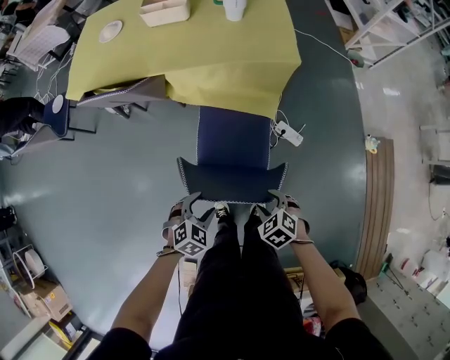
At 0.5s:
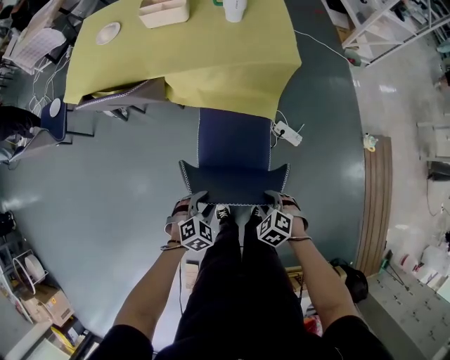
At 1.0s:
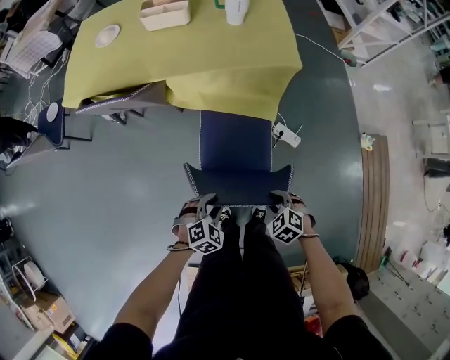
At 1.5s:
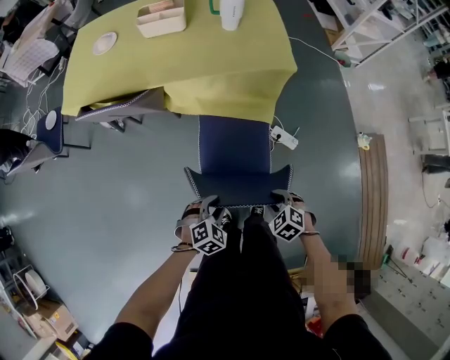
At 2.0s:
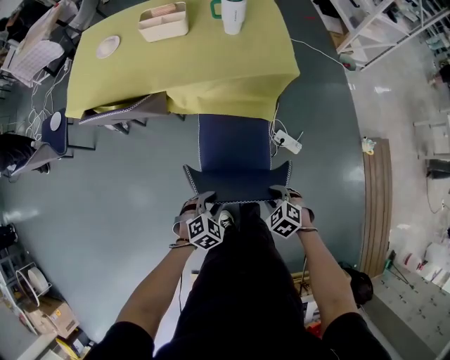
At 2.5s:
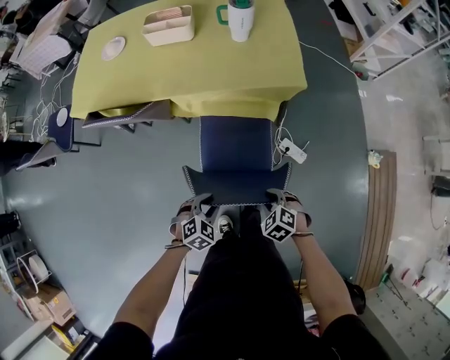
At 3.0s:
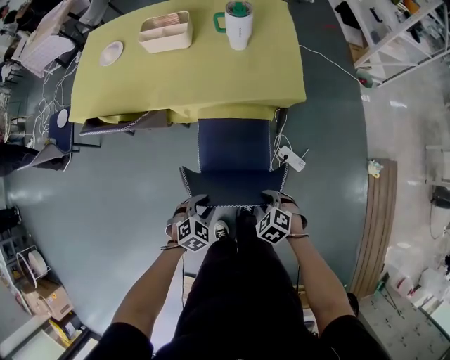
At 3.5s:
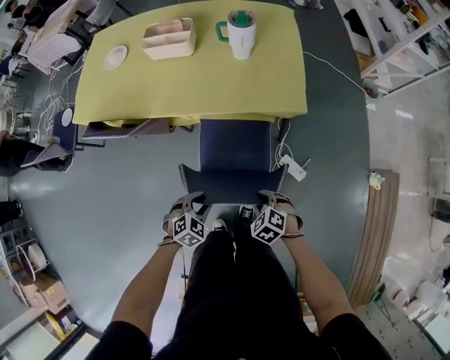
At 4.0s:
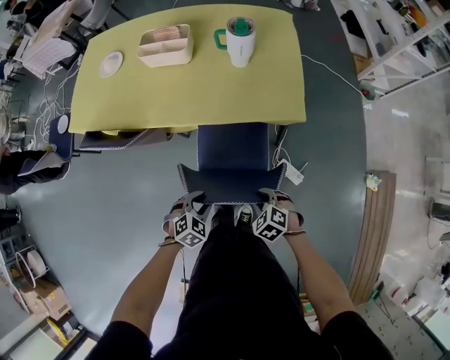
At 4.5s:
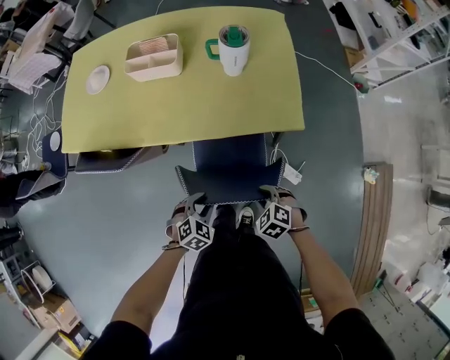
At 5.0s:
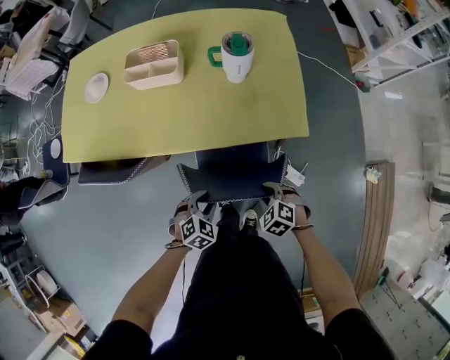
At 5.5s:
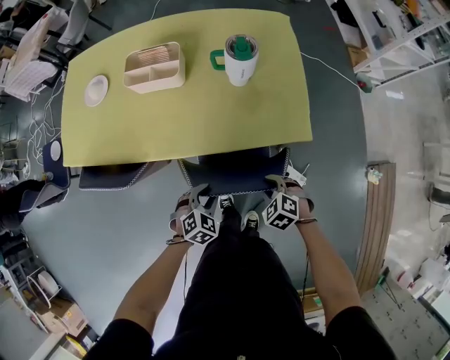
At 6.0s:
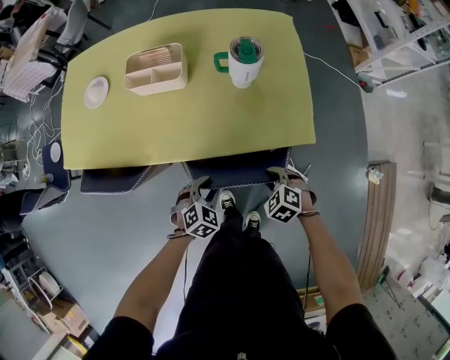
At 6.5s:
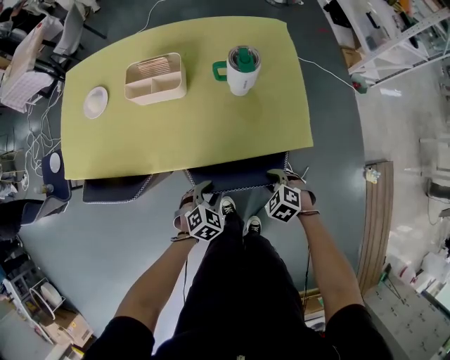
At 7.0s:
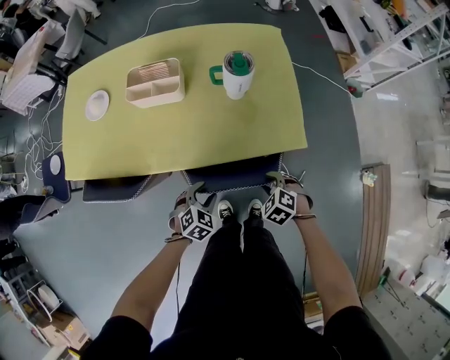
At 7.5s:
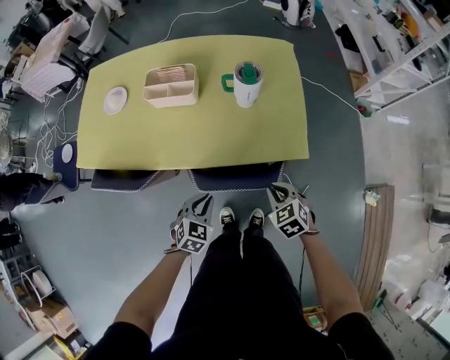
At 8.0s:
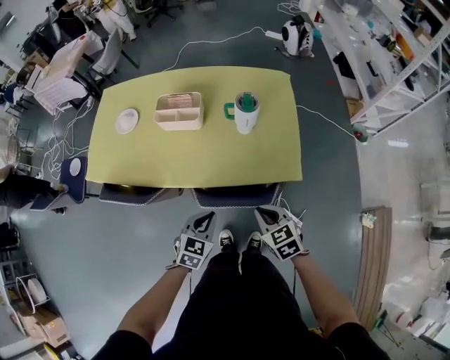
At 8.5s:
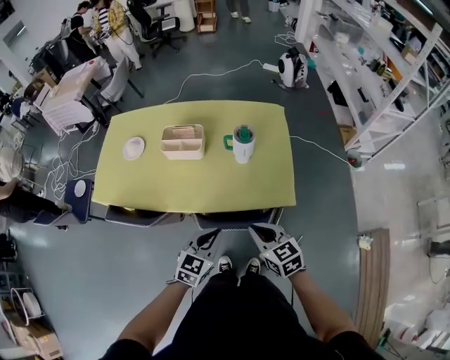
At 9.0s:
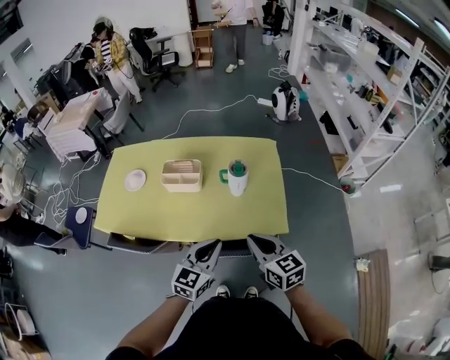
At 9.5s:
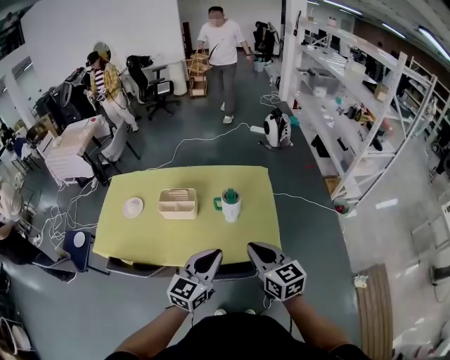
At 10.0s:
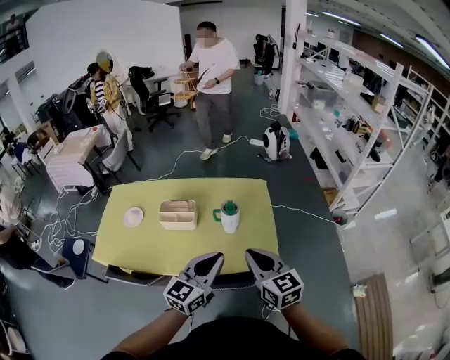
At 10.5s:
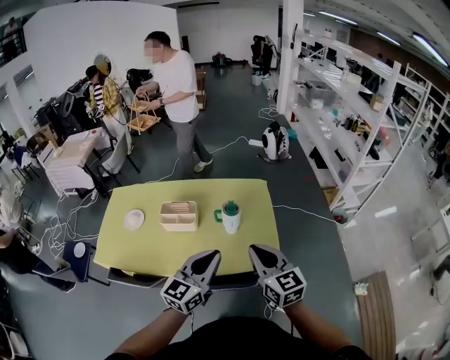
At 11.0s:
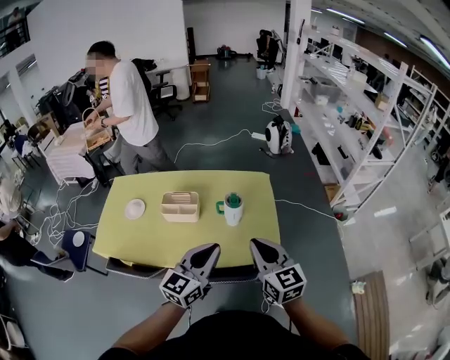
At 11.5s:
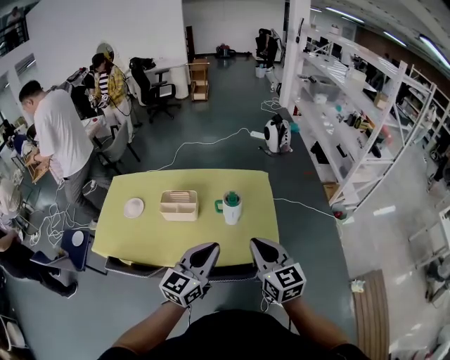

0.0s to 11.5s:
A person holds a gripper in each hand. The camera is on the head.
0.0s to 2.0s: Both grippers travel together forward, approximately 5 cm. The left gripper closes its fingers.
2.0s to 4.0s: The grippers both shift forward by approximately 20 cm.
4.0s to 6.0s: Both grippers travel together forward, about 20 cm.
6.0s to 7.5s: Both grippers move upward, some 10 cm. The right gripper rotates about 20 degrees, and closes up, while the left gripper closes its fingers.
7.5s to 9.5s: Both grippers travel together upward, about 35 cm. The left gripper angles its fingers upward, by roughly 40 degrees, while the right gripper tips its fingers upward by about 40 degrees.
9.5s to 11.5s: The grippers make only small movements.

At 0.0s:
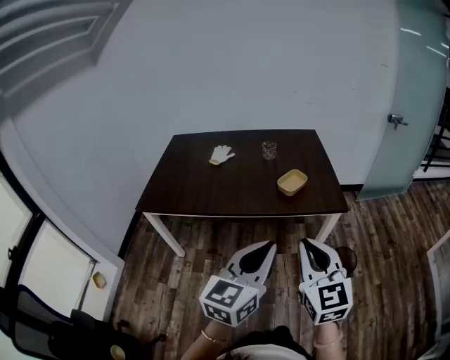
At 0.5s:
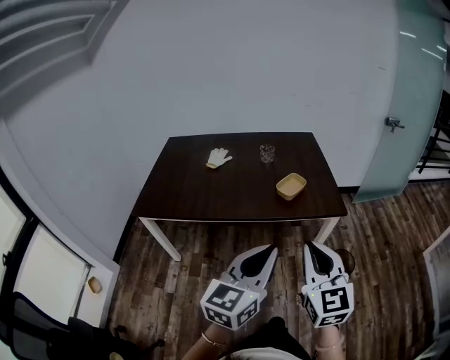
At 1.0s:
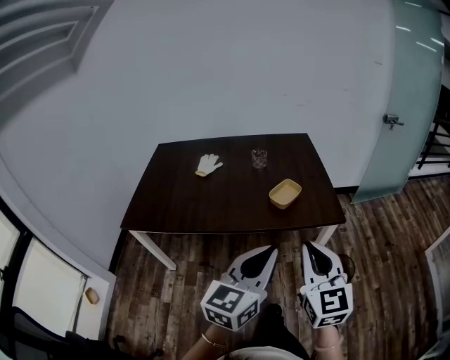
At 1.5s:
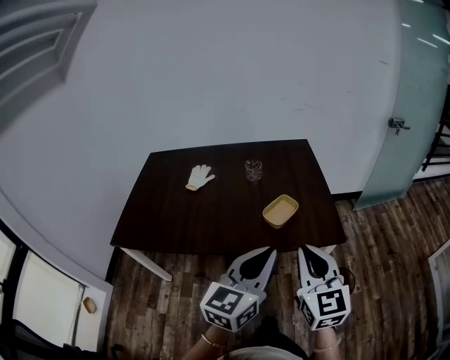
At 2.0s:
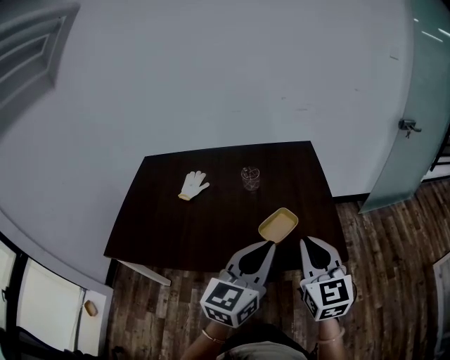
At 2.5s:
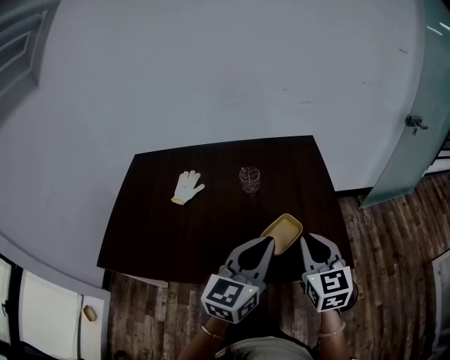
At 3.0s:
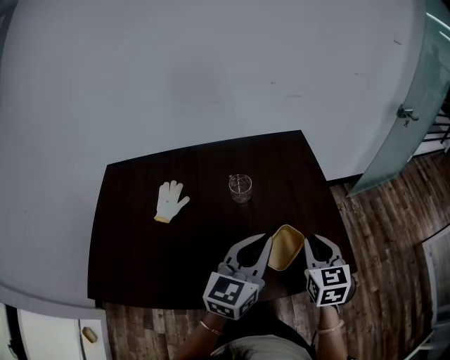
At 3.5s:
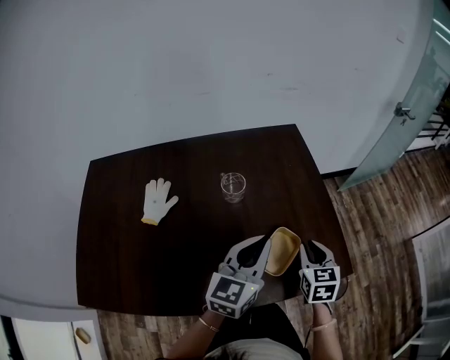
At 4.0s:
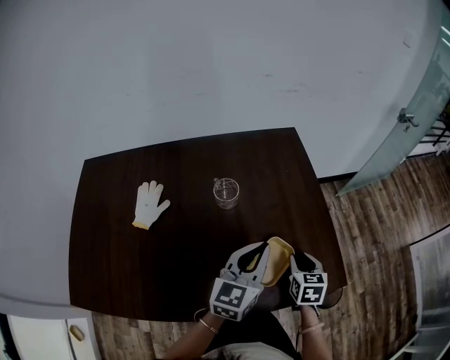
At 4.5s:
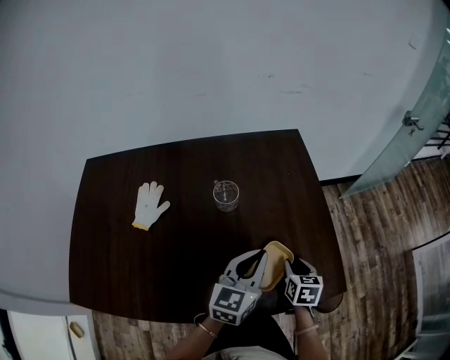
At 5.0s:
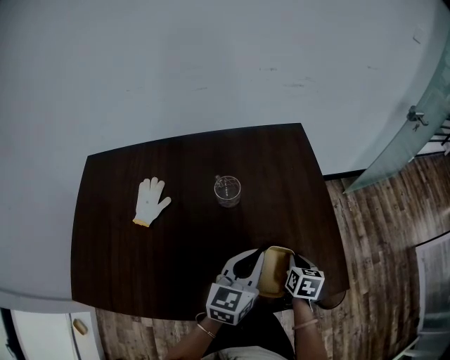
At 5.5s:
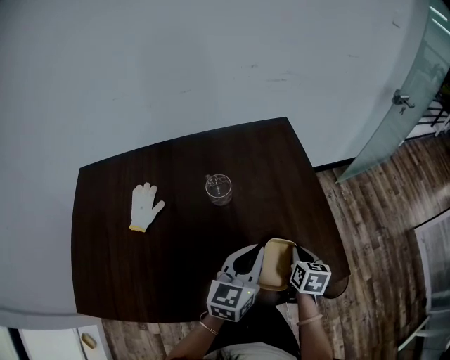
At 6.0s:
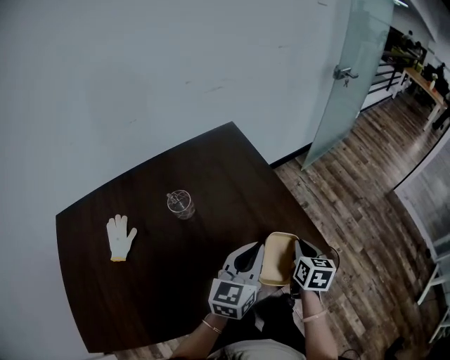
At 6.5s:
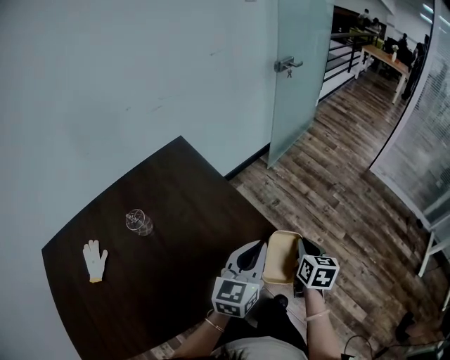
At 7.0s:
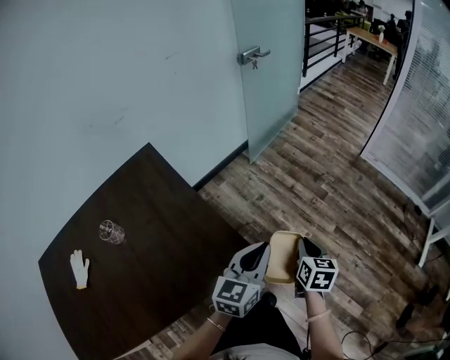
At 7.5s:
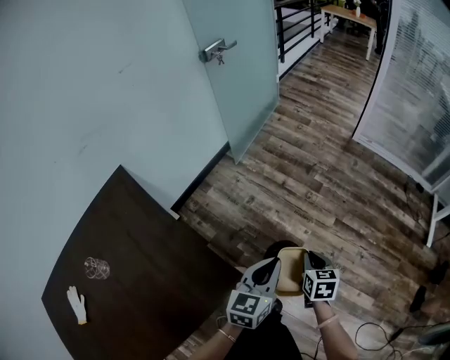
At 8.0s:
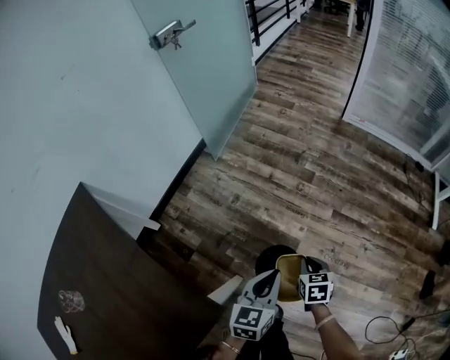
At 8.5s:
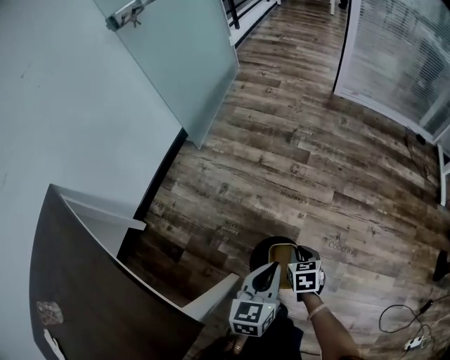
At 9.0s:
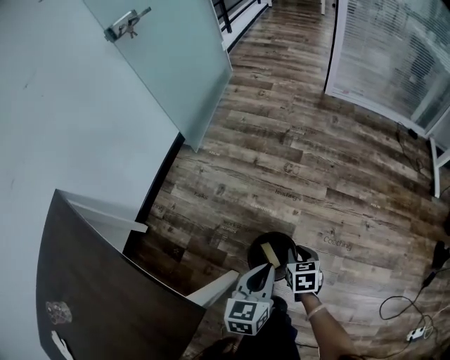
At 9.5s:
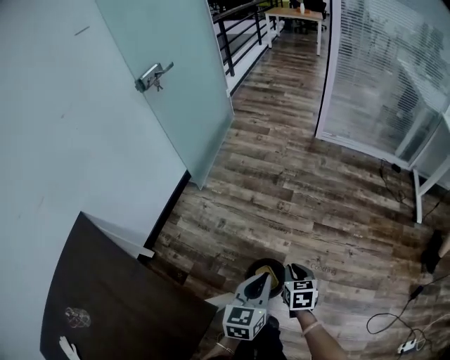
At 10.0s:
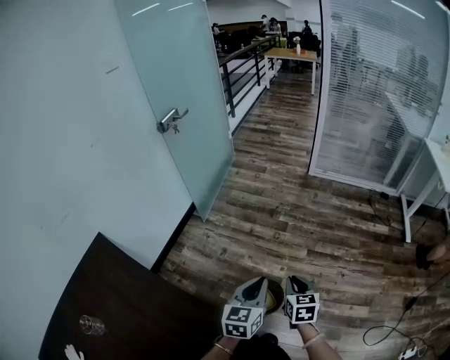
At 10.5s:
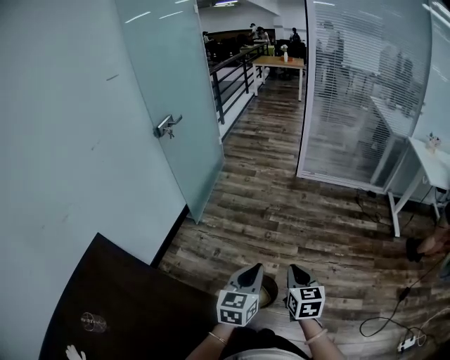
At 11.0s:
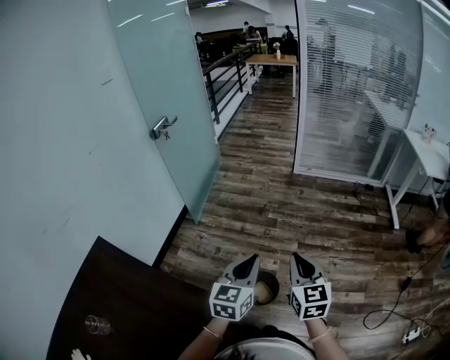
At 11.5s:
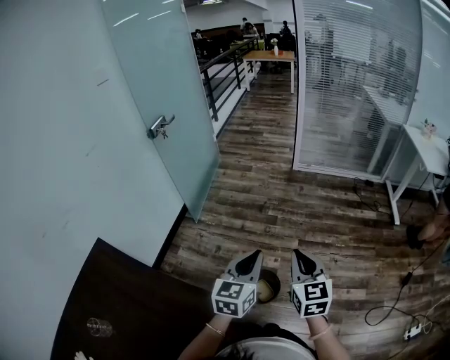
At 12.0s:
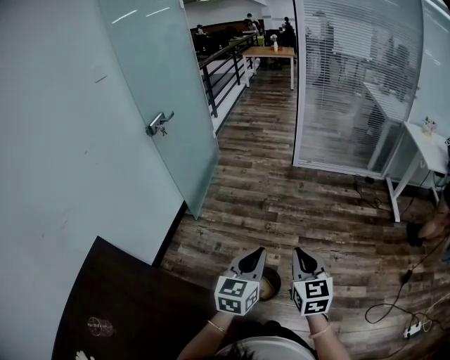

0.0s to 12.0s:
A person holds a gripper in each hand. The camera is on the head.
0.0s to 2.0s: Both grippers are carried forward, roughly 40 cm.
2.0s to 4.0s: Both grippers travel together forward and downward, about 35 cm. The right gripper tilts its fingers roughly 40 degrees downward, and opens up.
4.0s to 6.0s: The two grippers go about 10 cm to the right. The right gripper swivels approximately 30 degrees, and closes its fingers.
6.0s to 8.0s: The two grippers travel together, approximately 60 cm. The left gripper rotates some 30 degrees; the right gripper turns by roughly 30 degrees.
8.0s to 10.0s: Both grippers travel together upward, about 25 cm.
10.0s to 12.0s: The right gripper is displaced upward by some 20 cm, and swivels about 20 degrees, while the left gripper heads upward, covering roughly 10 cm.

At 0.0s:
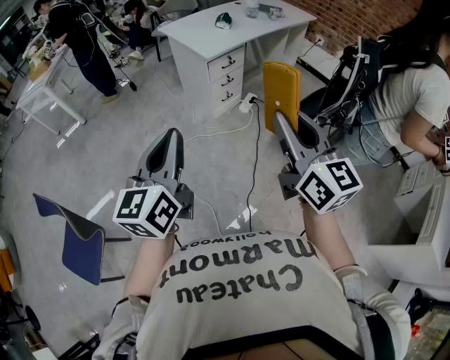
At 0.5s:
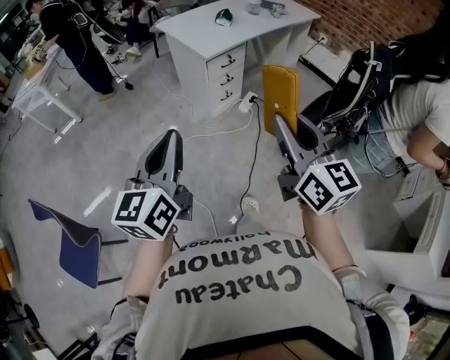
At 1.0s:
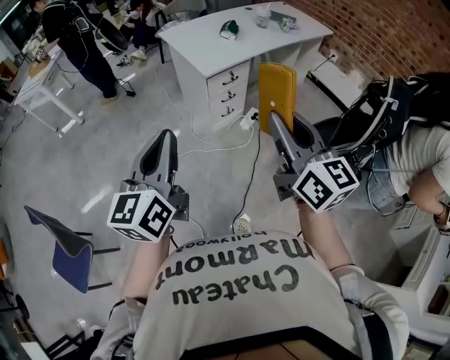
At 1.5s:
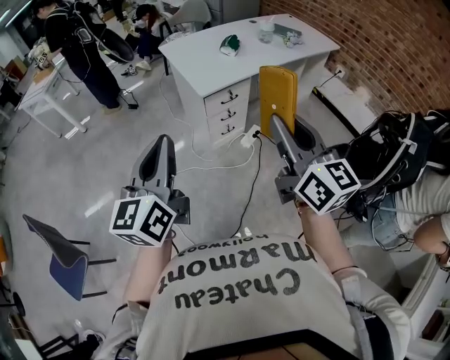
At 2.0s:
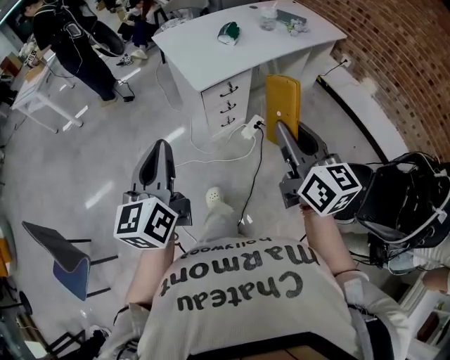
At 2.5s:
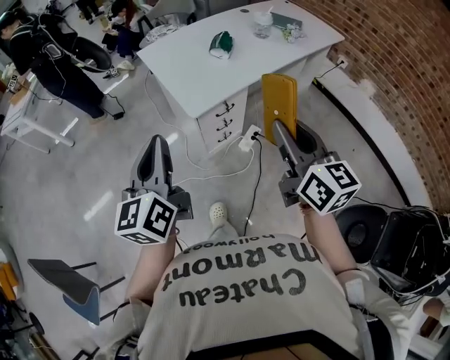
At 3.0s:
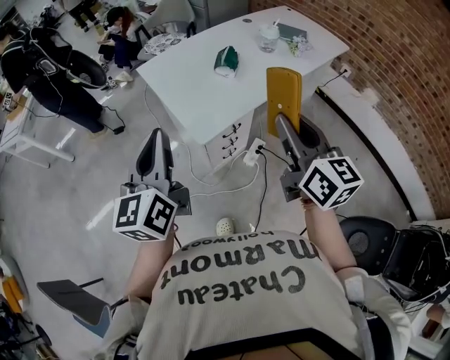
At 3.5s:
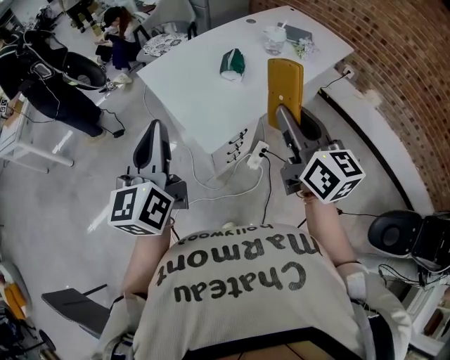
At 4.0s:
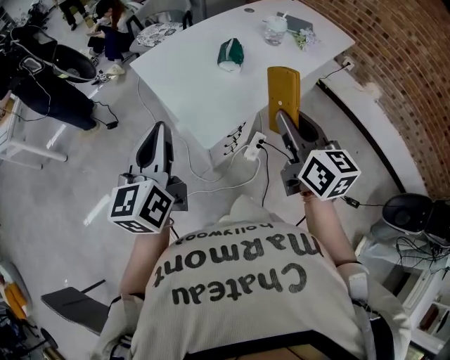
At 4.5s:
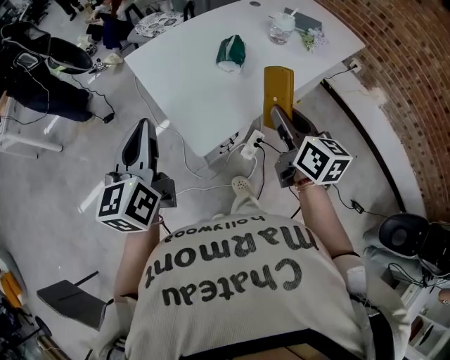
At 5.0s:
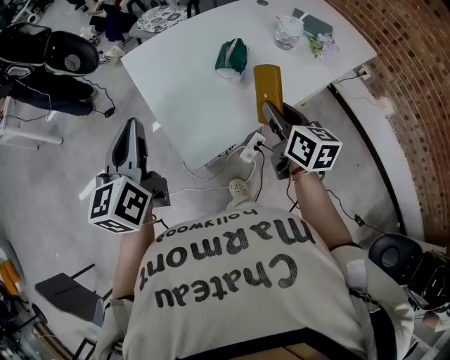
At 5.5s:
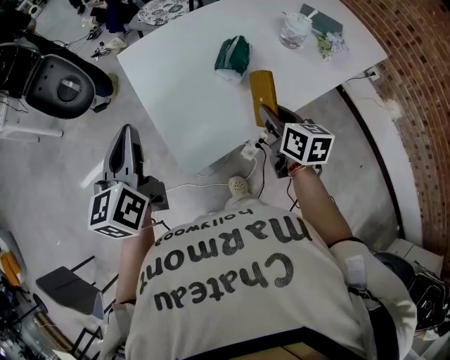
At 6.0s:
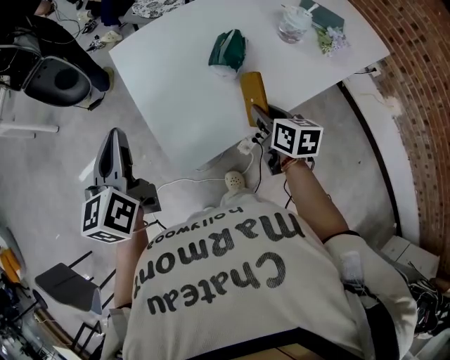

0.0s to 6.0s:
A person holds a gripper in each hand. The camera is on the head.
0.0s to 2.0s: The grippers both shift forward and to the right by roughly 35 cm.
2.0s to 4.0s: The two grippers go roughly 35 cm forward.
4.0s to 6.0s: The left gripper heads forward, covering approximately 15 cm, and rotates about 20 degrees, while the right gripper heads forward and downward, covering roughly 30 cm, and rotates some 30 degrees.
